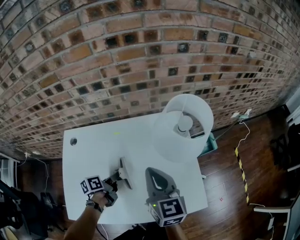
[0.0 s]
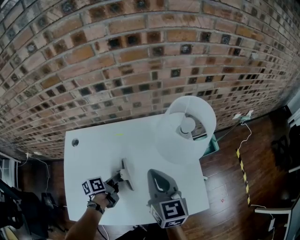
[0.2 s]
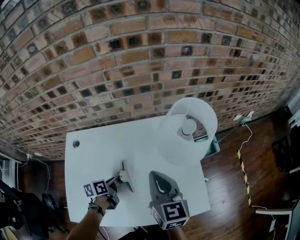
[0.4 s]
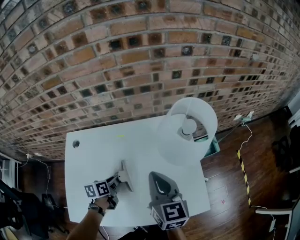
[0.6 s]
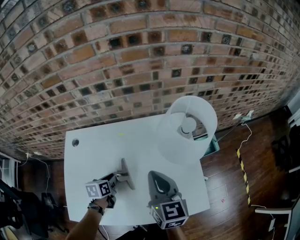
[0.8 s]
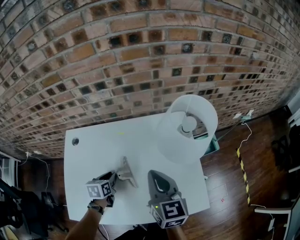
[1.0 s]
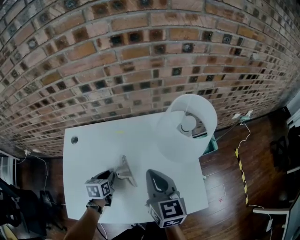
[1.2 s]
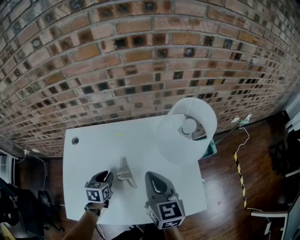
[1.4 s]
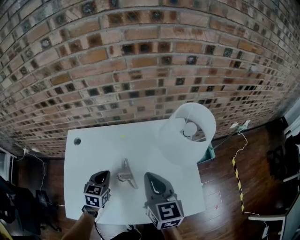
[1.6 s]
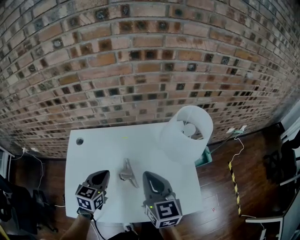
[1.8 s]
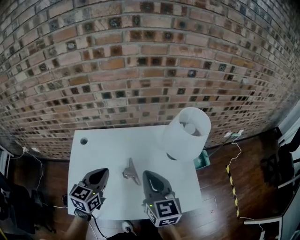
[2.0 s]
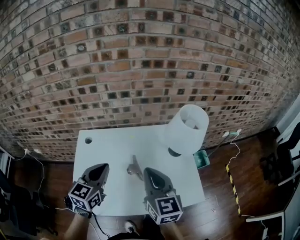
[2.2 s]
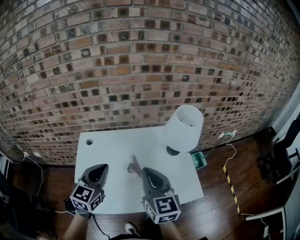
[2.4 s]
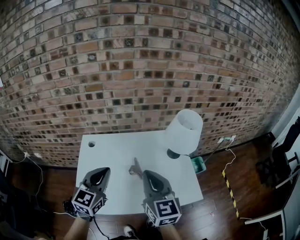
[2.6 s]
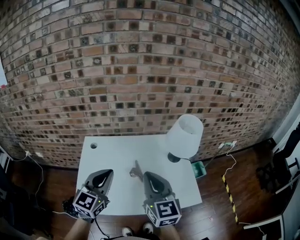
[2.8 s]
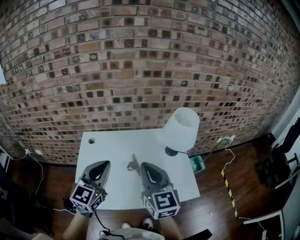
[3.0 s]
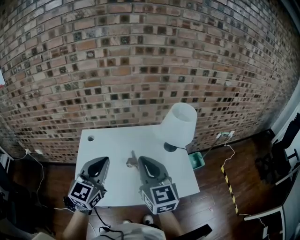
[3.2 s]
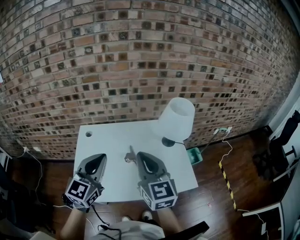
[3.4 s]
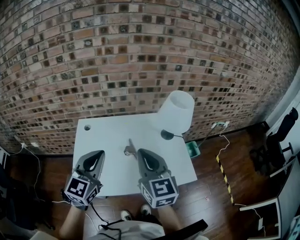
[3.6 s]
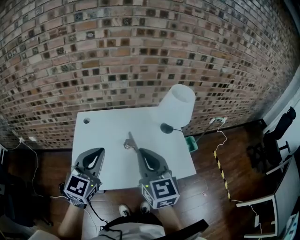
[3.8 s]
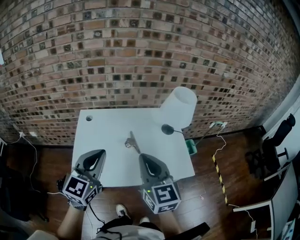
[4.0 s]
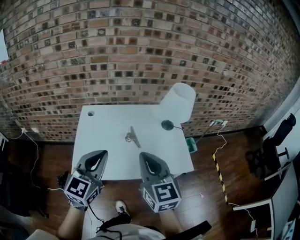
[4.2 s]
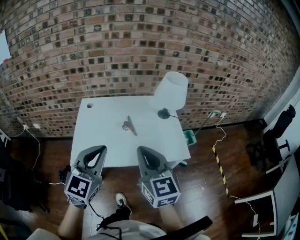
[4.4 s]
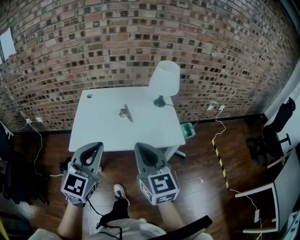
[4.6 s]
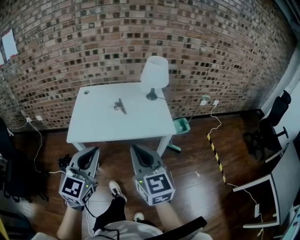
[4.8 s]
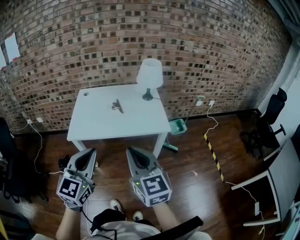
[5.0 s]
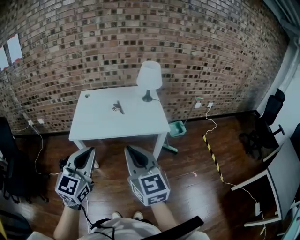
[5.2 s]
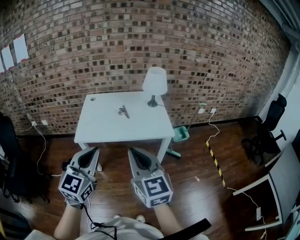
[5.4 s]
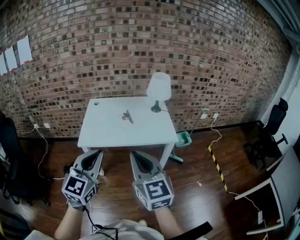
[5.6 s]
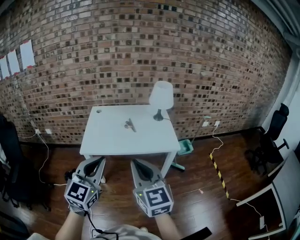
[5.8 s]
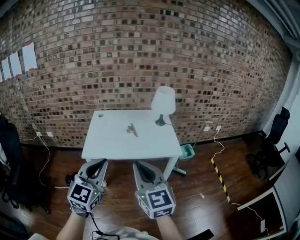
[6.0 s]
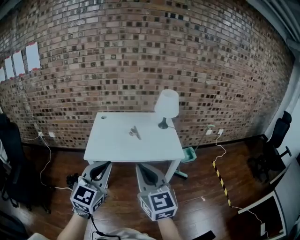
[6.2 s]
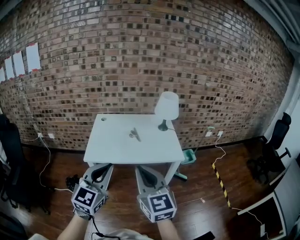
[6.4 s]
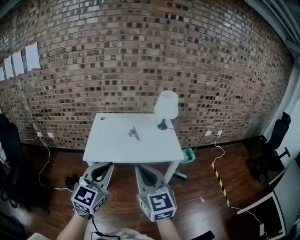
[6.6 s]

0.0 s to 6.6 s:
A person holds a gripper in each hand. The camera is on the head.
0.0 to 1.6 s: The left gripper goes some 5 cm upward, rolls clockwise, seen from behind, by roughly 60 degrees, and opens and closes again.
1.6 to 3.2 s: The left gripper shifts approximately 35 cm upward and backward, and tilts its fingers approximately 40 degrees upward. The right gripper travels upward, backward and to the left by about 20 cm.
3.2 to 5.0 s: The pair of grippers is taken backward, some 40 cm.
5.0 to 6.6 s: The right gripper heads to the left, covering about 5 cm, while the left gripper moves some 5 cm.

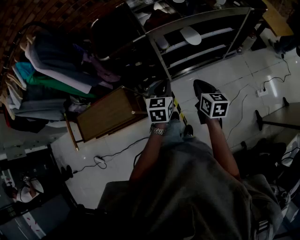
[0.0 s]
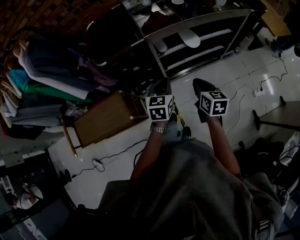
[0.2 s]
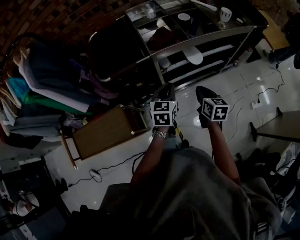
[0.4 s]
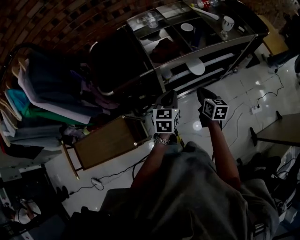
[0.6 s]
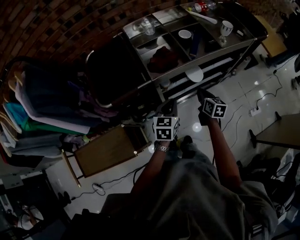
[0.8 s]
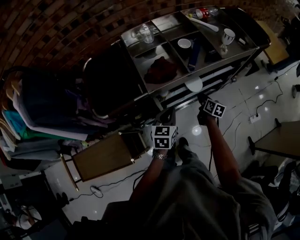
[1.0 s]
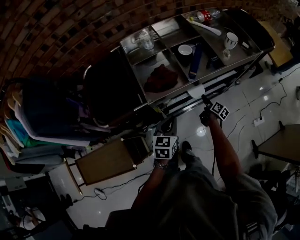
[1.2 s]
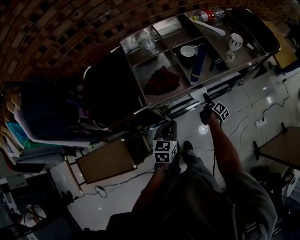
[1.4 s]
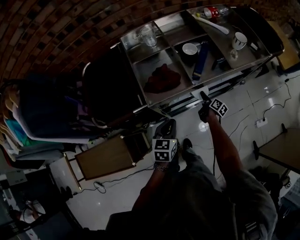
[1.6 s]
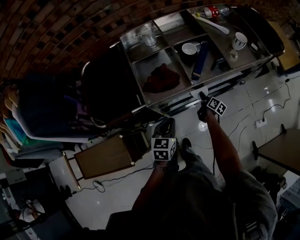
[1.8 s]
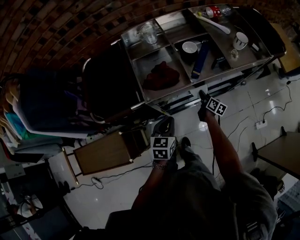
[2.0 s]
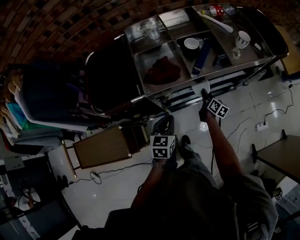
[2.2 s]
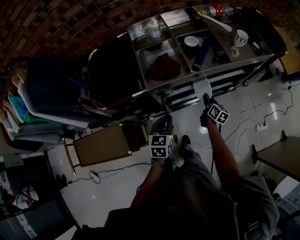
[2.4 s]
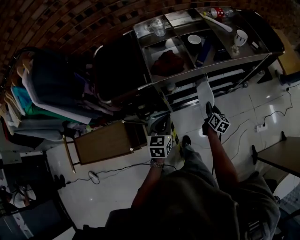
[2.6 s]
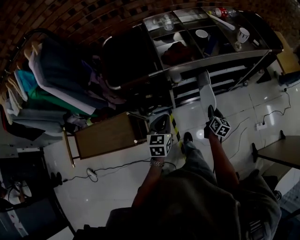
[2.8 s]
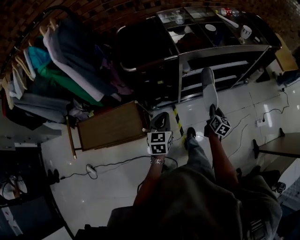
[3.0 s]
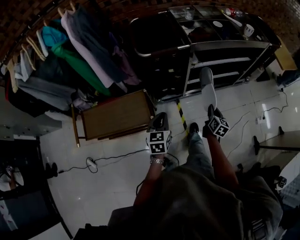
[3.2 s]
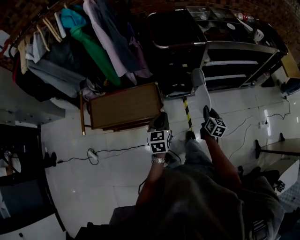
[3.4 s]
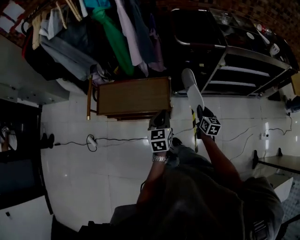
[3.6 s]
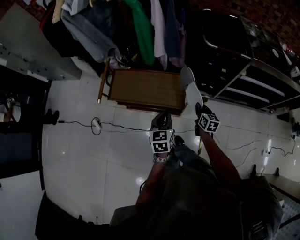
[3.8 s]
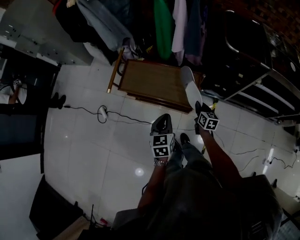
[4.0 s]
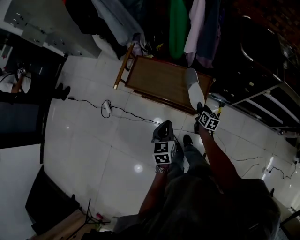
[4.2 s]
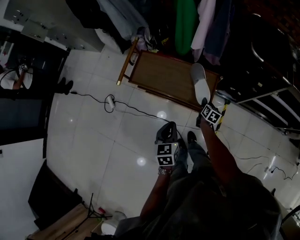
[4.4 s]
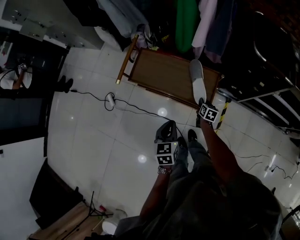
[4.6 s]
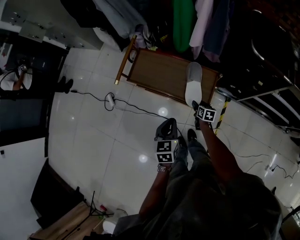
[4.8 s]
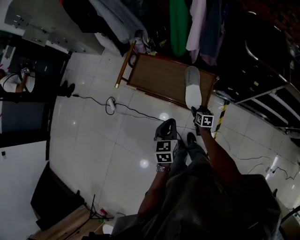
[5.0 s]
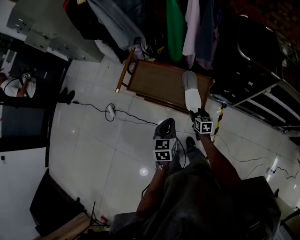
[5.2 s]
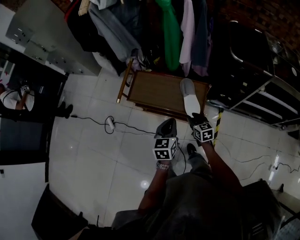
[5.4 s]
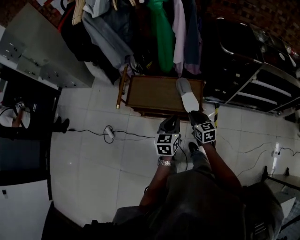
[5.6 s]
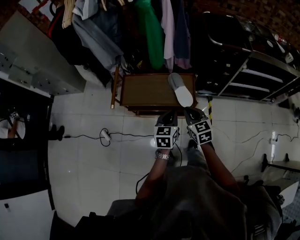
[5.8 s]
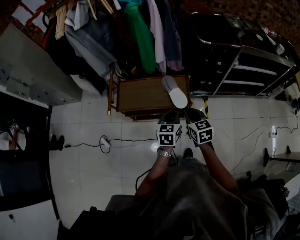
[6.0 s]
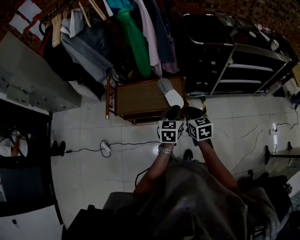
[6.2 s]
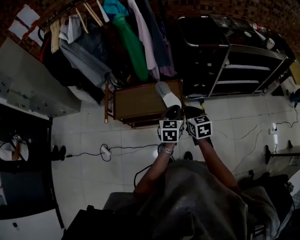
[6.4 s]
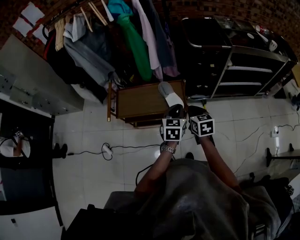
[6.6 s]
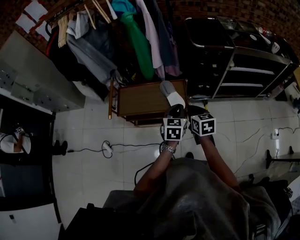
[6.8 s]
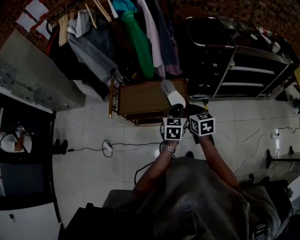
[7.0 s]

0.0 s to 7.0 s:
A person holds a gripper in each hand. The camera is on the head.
0.0 to 1.4 s: The right gripper shifts some 40 cm forward and downward, rotates around the line of its fingers by roughly 50 degrees, clockwise from behind, and opens up; the left gripper travels forward by some 20 cm.
1.4 to 2.8 s: The left gripper travels backward and to the left by approximately 15 cm. Meanwhile the right gripper goes approximately 25 cm backward and upward, rotates around the line of its fingers by roughly 40 degrees, counterclockwise from behind, and closes.
2.8 to 4.2 s: Both grippers are carried about 60 cm. The left gripper rotates approximately 40 degrees; the right gripper changes its angle by approximately 40 degrees.
4.2 to 5.6 s: The right gripper is displaced upward and to the left by about 20 cm, rotates approximately 20 degrees, and opens, then closes again. Meanwhile the left gripper heads upward, covering about 5 cm, and rotates about 20 degrees.
5.6 to 7.0 s: The right gripper goes approximately 15 cm upward and to the right; the left gripper heads to the right, covering roughly 10 cm.

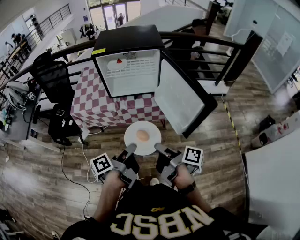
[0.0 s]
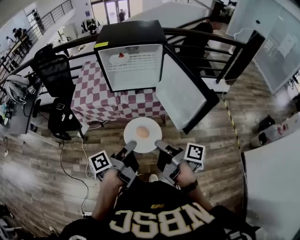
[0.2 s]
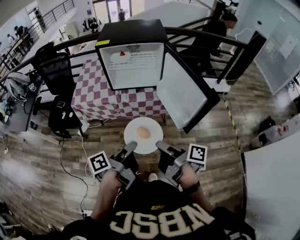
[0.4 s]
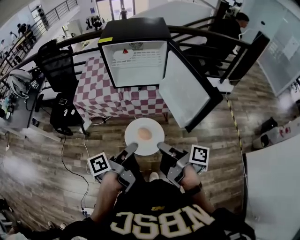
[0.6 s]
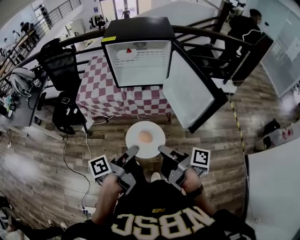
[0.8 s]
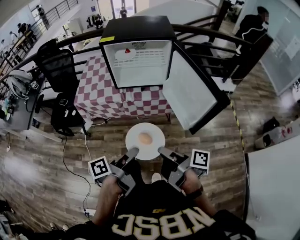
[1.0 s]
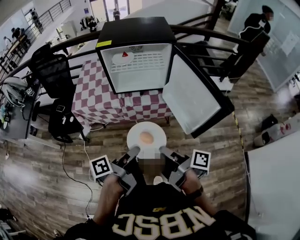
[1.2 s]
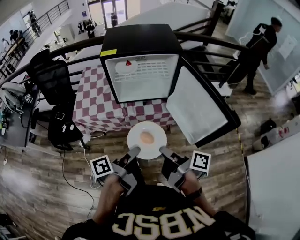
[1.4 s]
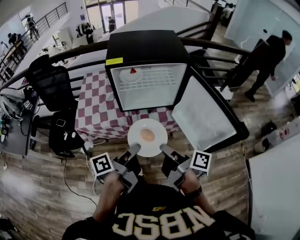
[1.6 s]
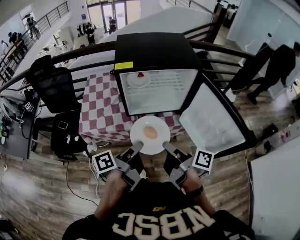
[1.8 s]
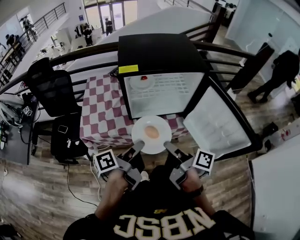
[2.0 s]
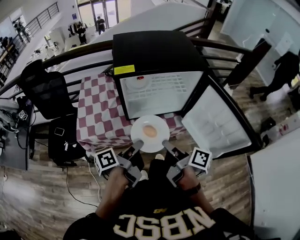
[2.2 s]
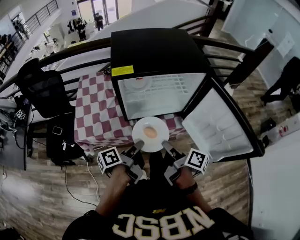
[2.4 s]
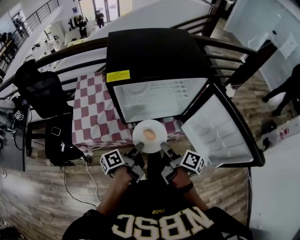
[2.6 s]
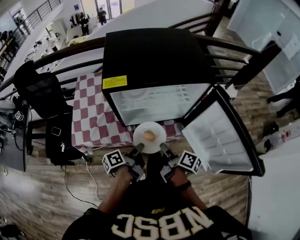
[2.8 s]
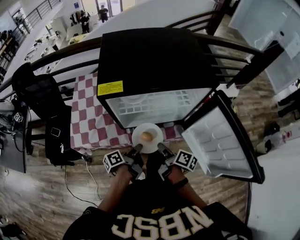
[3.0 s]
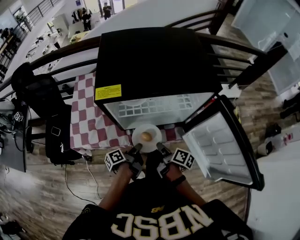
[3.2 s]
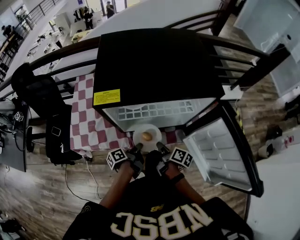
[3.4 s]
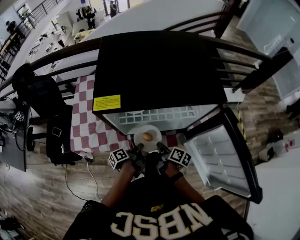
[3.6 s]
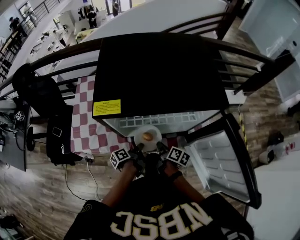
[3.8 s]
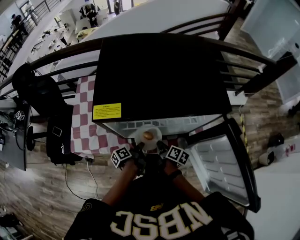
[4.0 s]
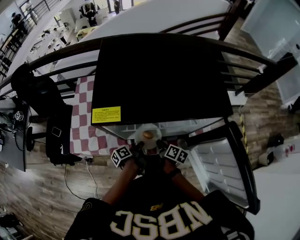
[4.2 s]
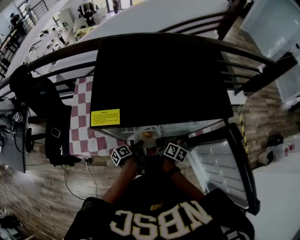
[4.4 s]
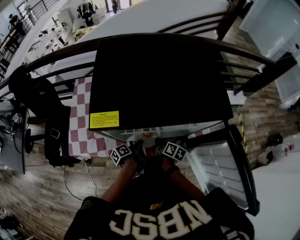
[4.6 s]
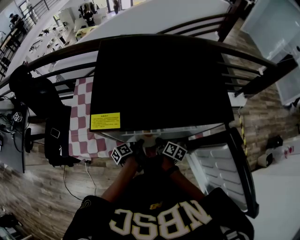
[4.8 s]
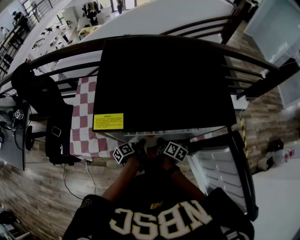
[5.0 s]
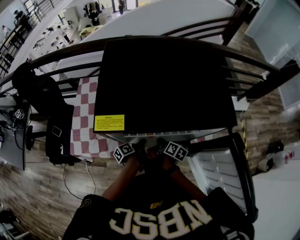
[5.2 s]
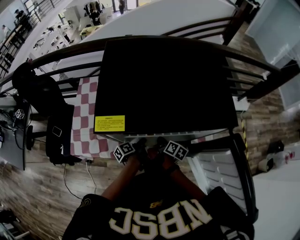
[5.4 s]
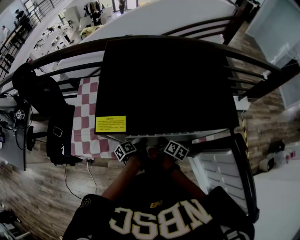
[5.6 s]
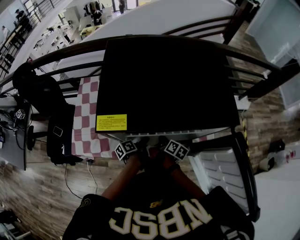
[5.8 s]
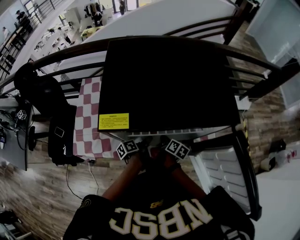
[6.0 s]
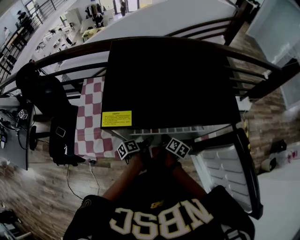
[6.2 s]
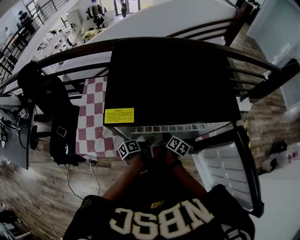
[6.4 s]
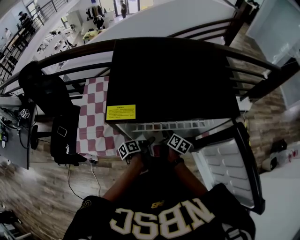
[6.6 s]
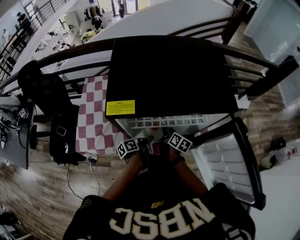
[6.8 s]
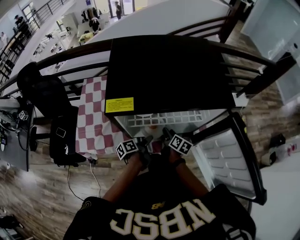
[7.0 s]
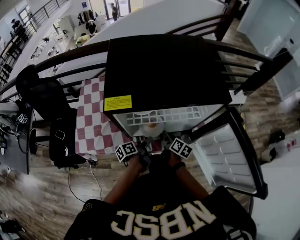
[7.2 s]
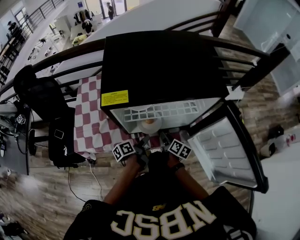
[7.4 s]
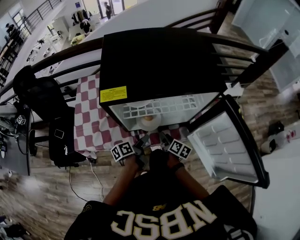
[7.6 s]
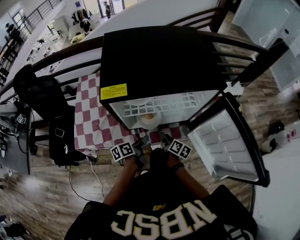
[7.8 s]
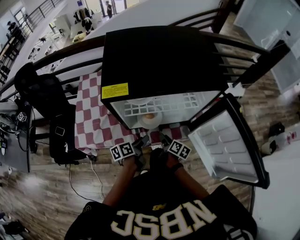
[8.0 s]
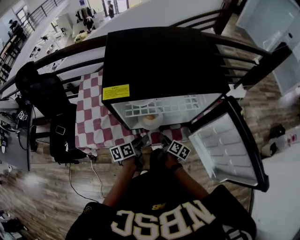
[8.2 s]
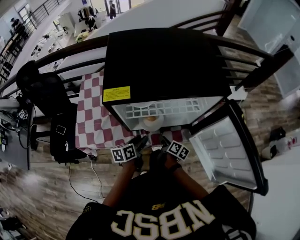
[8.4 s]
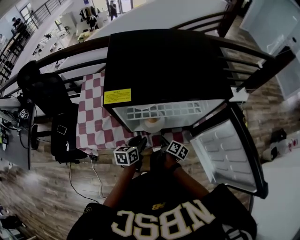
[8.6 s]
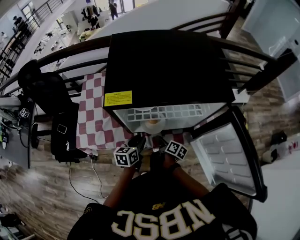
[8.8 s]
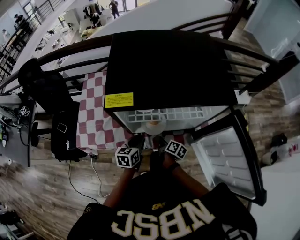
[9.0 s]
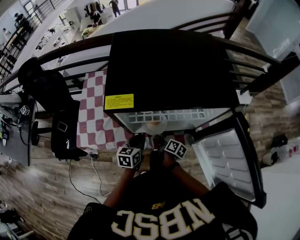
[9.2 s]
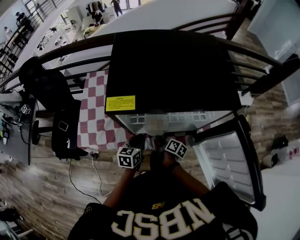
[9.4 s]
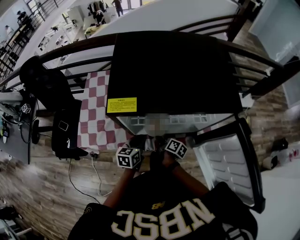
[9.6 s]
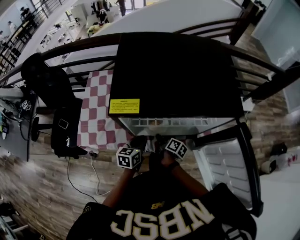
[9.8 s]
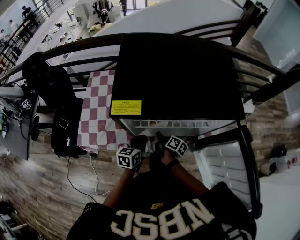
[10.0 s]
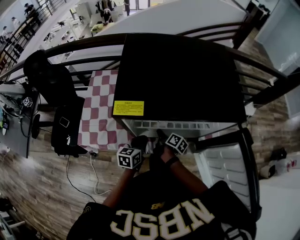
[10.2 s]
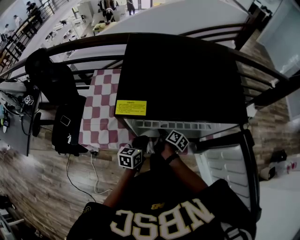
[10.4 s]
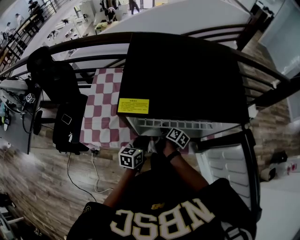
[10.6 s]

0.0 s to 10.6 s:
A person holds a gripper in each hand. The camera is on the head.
0.0 to 1.6 s: The right gripper moves some 20 cm.
1.6 to 3.0 s: The right gripper ends up roughly 30 cm from where it was.
3.0 to 4.6 s: The right gripper travels downward by about 15 cm.
6.0 to 7.6 s: The right gripper ends up roughly 10 cm from where it was, and opens its fingers.
7.6 to 9.0 s: The right gripper changes place by approximately 5 cm, and closes up.
9.0 to 10.6 s: The right gripper moves roughly 10 cm.
